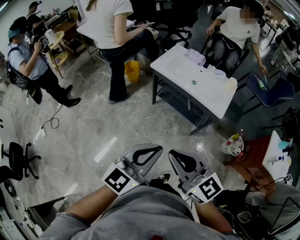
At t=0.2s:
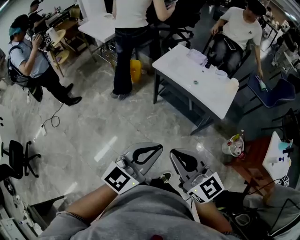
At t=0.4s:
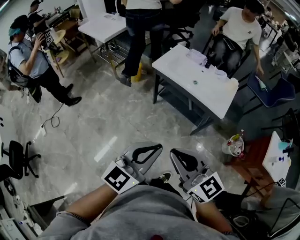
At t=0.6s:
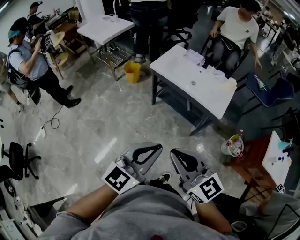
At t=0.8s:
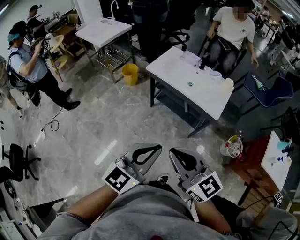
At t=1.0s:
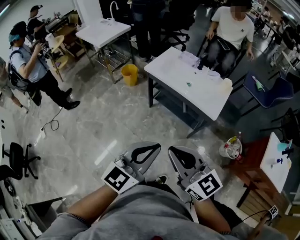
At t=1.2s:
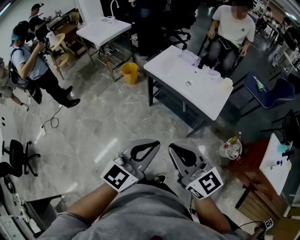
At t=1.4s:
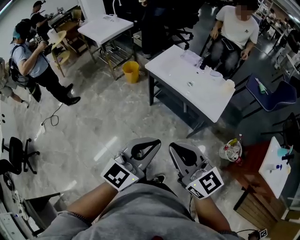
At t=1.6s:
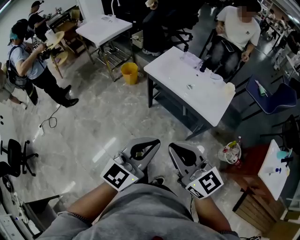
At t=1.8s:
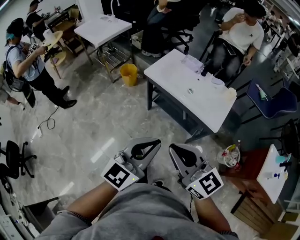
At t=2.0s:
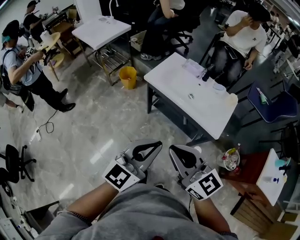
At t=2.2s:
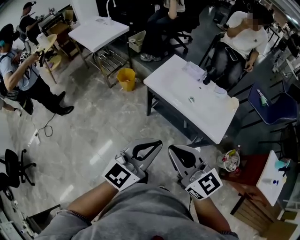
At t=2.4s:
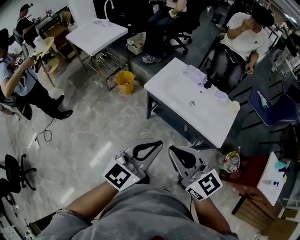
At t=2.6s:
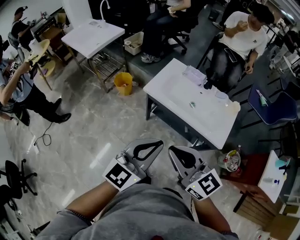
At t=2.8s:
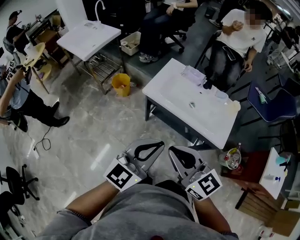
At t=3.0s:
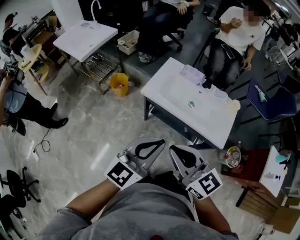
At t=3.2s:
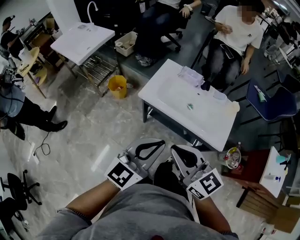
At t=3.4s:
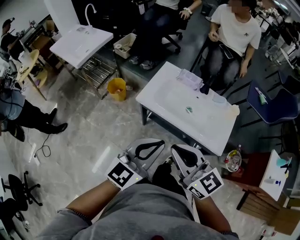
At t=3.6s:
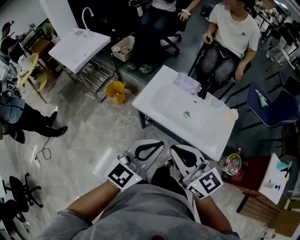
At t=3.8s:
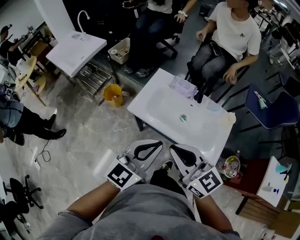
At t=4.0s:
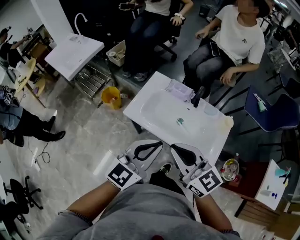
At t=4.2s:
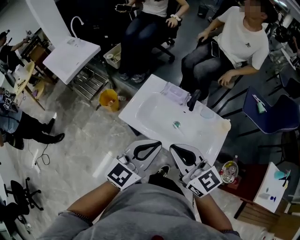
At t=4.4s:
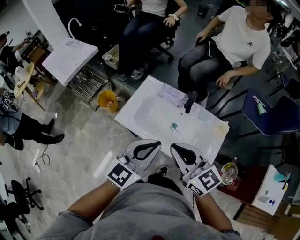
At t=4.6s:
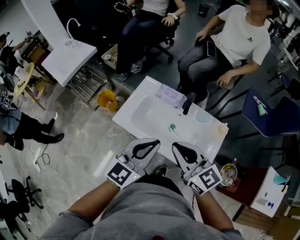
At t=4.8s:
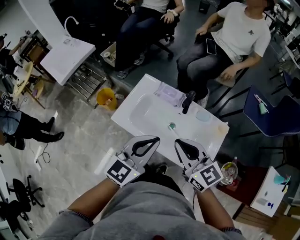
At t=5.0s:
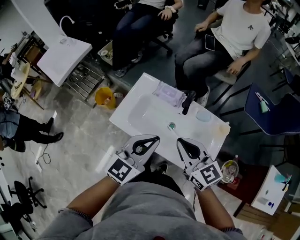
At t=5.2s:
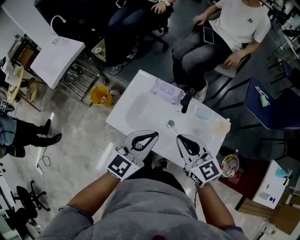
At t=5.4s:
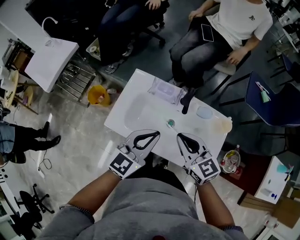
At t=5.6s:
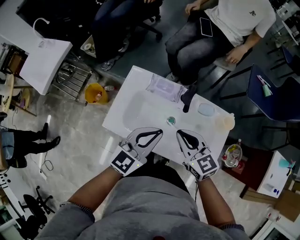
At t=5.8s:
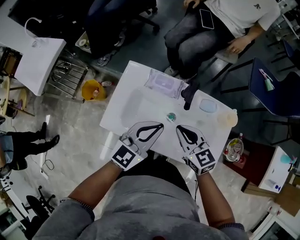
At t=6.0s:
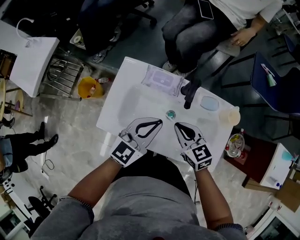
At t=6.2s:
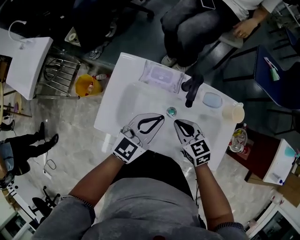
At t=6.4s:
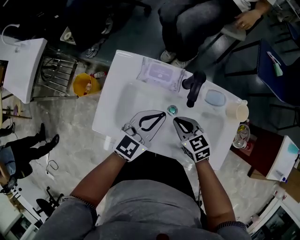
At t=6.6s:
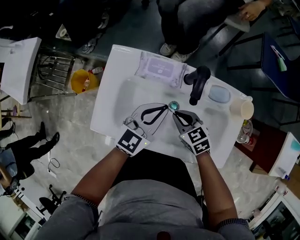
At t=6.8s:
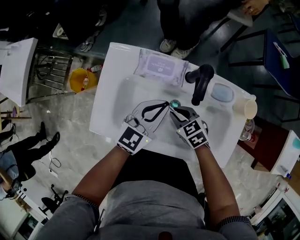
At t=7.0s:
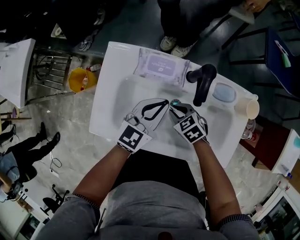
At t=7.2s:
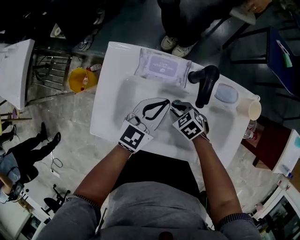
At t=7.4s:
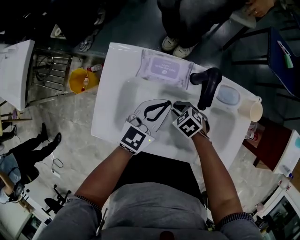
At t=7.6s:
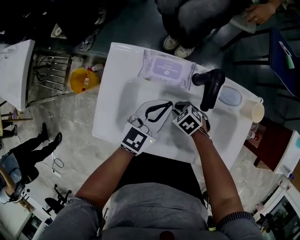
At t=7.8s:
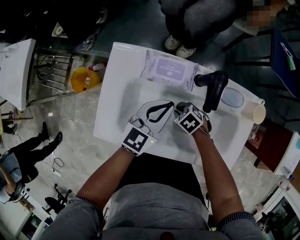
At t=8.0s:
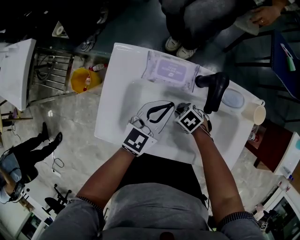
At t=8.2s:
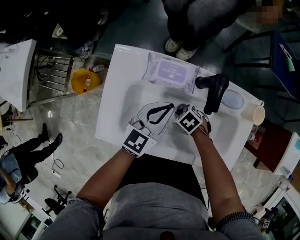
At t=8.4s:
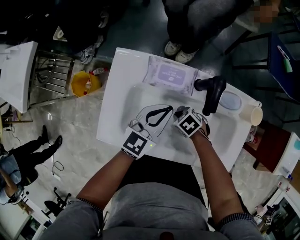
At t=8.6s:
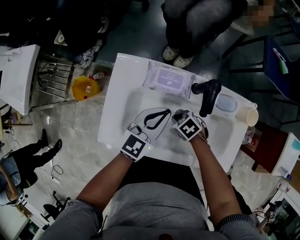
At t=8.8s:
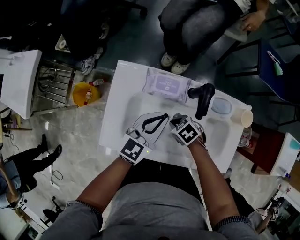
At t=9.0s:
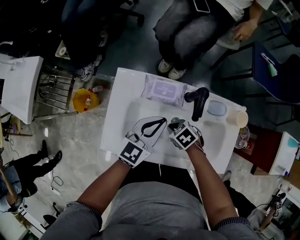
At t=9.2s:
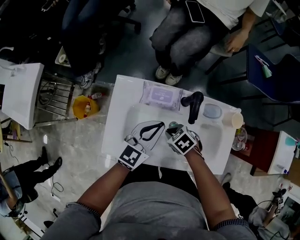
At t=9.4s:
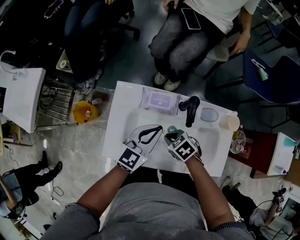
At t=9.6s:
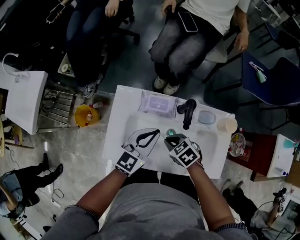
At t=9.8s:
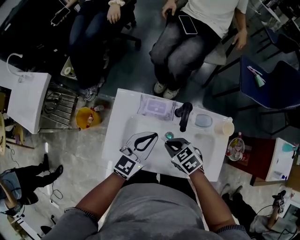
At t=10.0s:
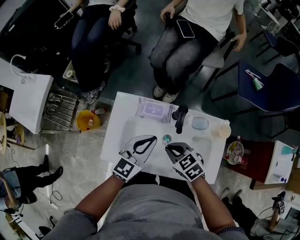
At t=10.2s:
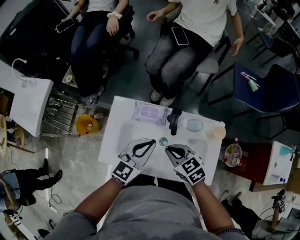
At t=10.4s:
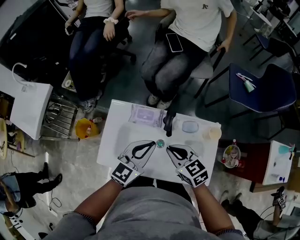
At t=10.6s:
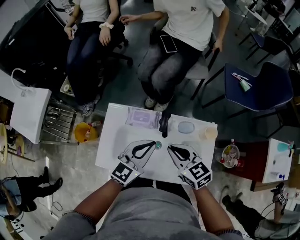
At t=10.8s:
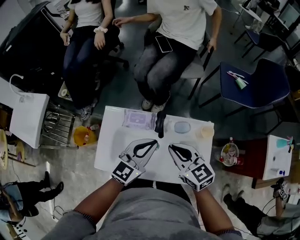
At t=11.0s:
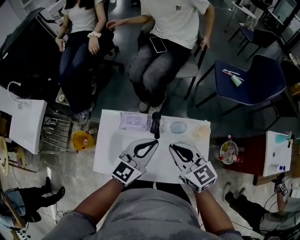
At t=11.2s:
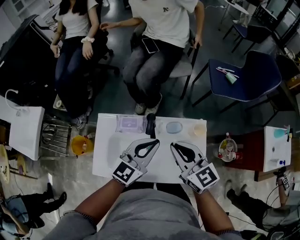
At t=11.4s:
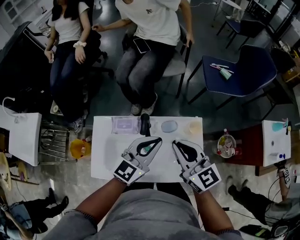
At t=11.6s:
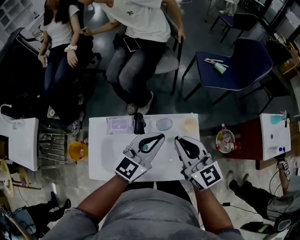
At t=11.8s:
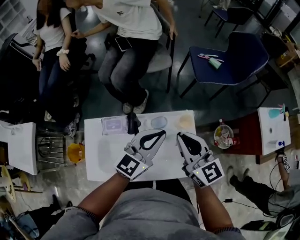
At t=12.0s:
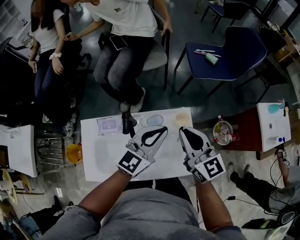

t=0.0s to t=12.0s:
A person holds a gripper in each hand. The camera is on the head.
t=0.0s to t=1.6s: The left gripper heads forward and to the right, covering about 10 cm, while the right gripper goes about 10 cm to the right and forward.
t=1.6s to t=3.0s: The grippers both shift forward by some 25 cm.
t=3.0s to t=4.4s: Both grippers travel together forward and to the right, roughly 25 cm.
t=4.4s to t=6.0s: The grippers both shift downward and forward by some 25 cm. The right gripper turns by approximately 30 degrees.
t=6.0s to t=7.6s: The left gripper moves downward, some 15 cm; the right gripper is displaced downward by about 25 cm, and angles its fingers downward, by approximately 40 degrees.
t=7.6s to t=9.0s: The two grippers go about 5 cm upward.
t=9.0s to t=10.4s: The right gripper goes approximately 25 cm upward, and swivels roughly 40 degrees. The left gripper heads upward, covering approximately 10 cm.
t=10.4s to t=12.0s: The right gripper shifts by some 25 cm, and angles its fingers upward, by approximately 30 degrees. Meanwhile the left gripper moves roughly 20 cm, and rotates roughly 20 degrees.

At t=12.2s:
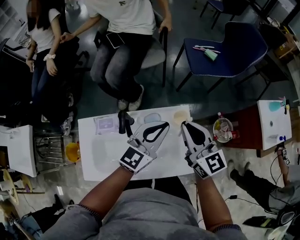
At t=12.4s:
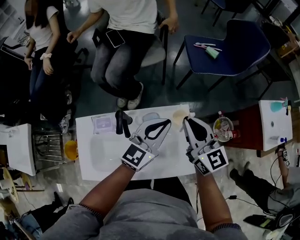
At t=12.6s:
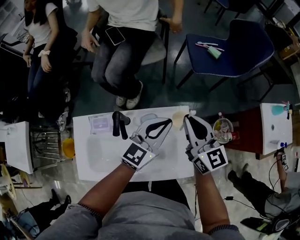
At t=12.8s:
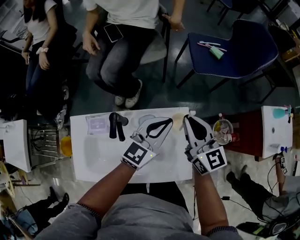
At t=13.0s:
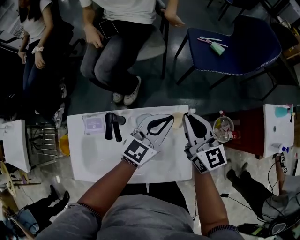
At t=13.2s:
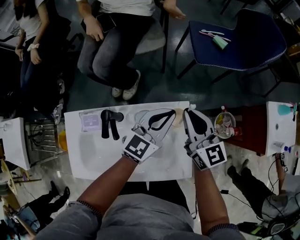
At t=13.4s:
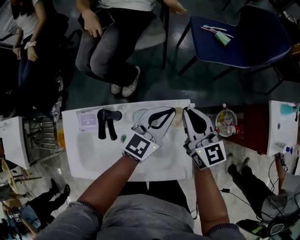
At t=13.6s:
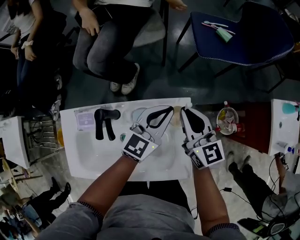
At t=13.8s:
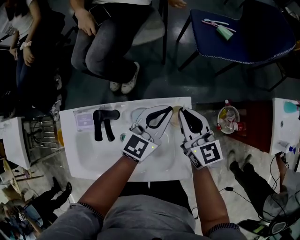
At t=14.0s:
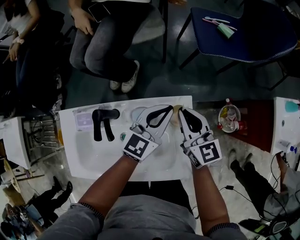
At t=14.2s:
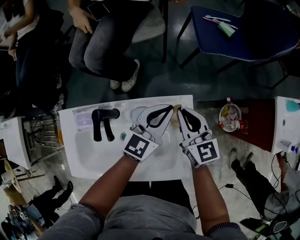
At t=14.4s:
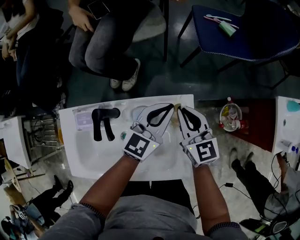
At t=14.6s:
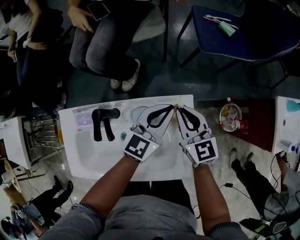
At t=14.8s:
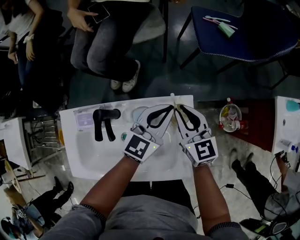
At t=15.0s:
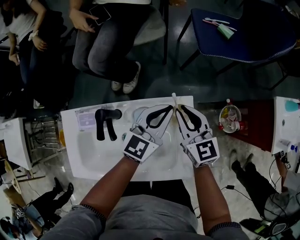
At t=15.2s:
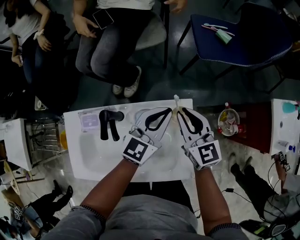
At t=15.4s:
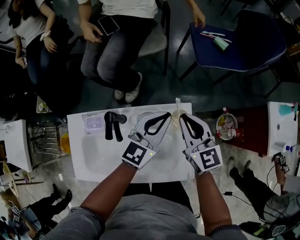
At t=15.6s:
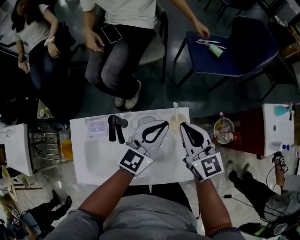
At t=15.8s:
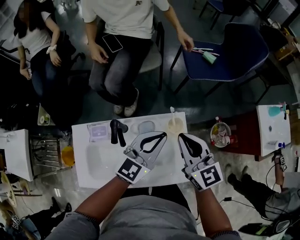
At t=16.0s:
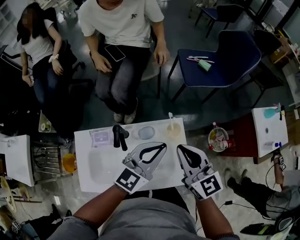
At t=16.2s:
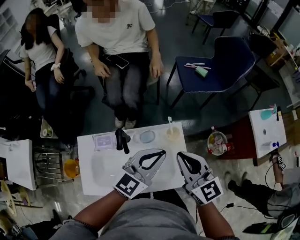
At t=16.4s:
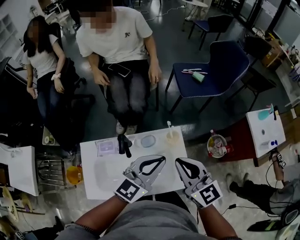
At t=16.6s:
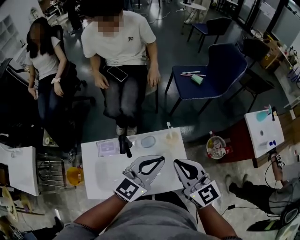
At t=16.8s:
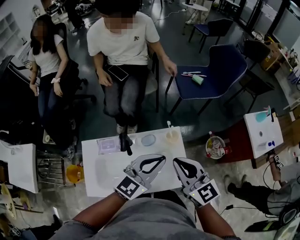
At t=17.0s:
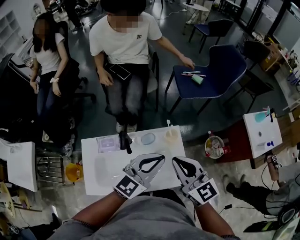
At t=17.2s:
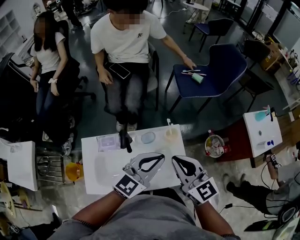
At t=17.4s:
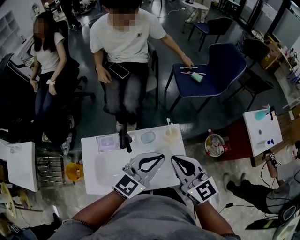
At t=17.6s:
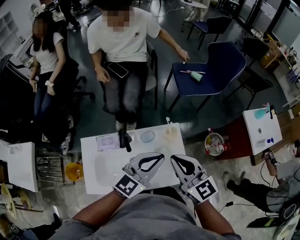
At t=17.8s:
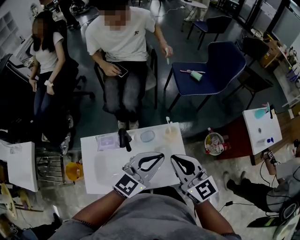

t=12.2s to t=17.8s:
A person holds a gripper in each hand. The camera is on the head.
t=12.2s to t=13.6s: The two grippers go roughly 15 cm downward and forward.
t=13.6s to t=15.0s: The grippers stay close to where they were, moving slightly.
t=15.0s to t=16.4s: Both grippers move upward and backward, some 25 cm.
t=16.4s to t=17.8s: The grippers move only a little.

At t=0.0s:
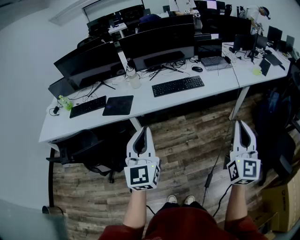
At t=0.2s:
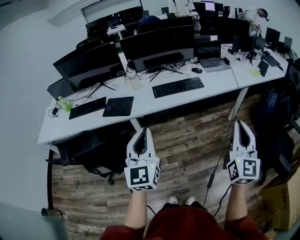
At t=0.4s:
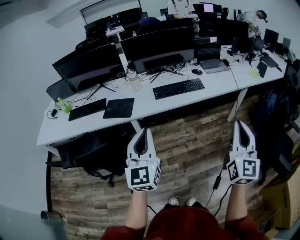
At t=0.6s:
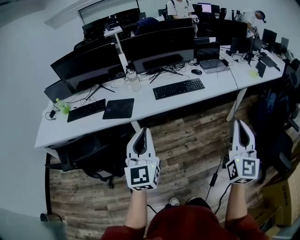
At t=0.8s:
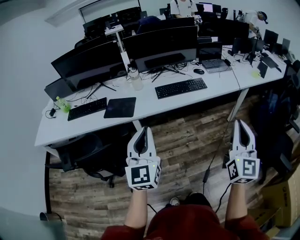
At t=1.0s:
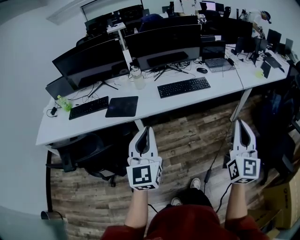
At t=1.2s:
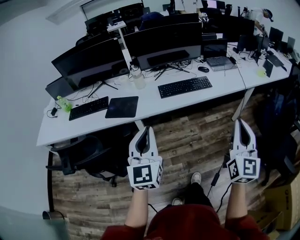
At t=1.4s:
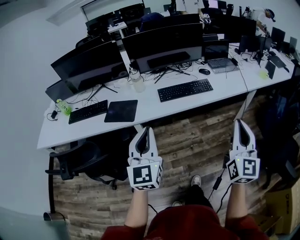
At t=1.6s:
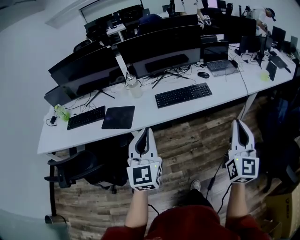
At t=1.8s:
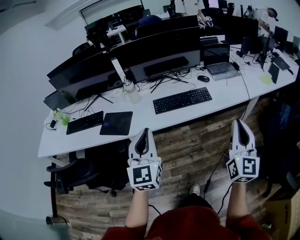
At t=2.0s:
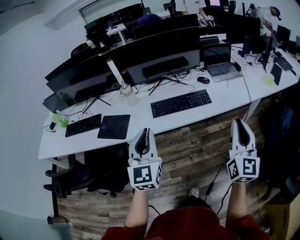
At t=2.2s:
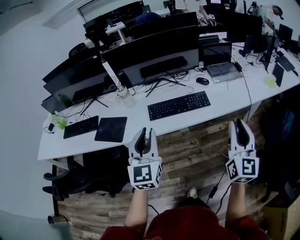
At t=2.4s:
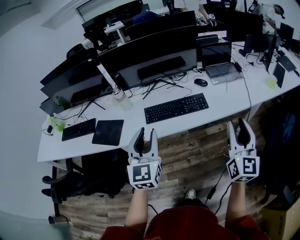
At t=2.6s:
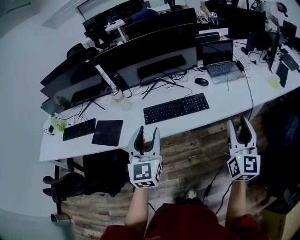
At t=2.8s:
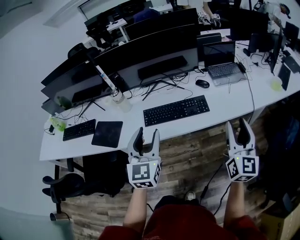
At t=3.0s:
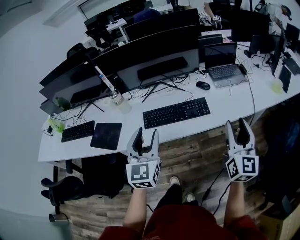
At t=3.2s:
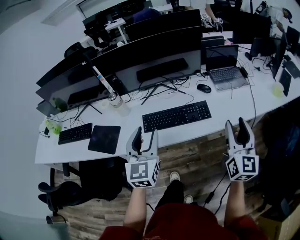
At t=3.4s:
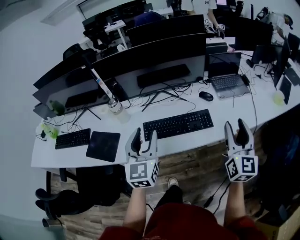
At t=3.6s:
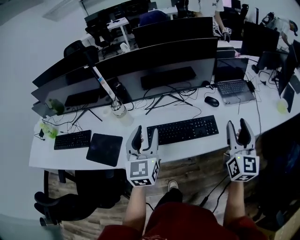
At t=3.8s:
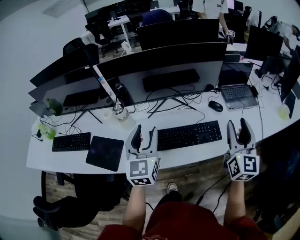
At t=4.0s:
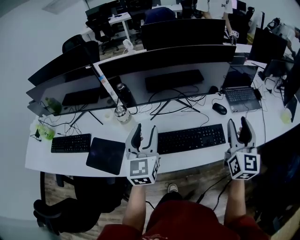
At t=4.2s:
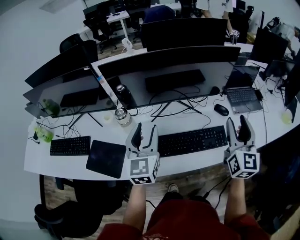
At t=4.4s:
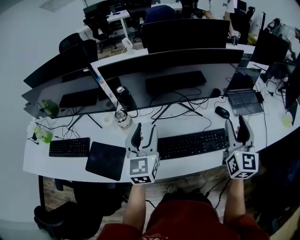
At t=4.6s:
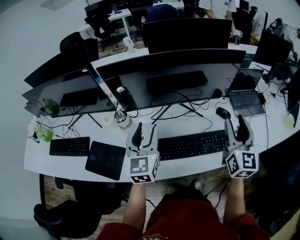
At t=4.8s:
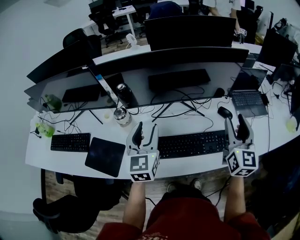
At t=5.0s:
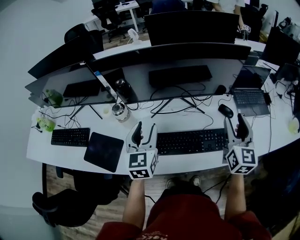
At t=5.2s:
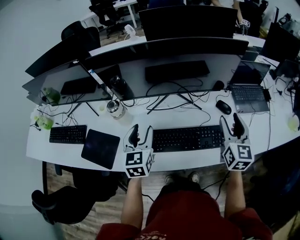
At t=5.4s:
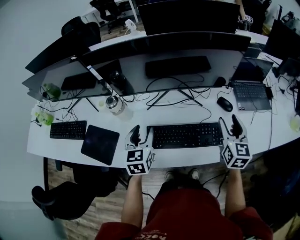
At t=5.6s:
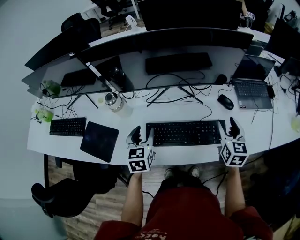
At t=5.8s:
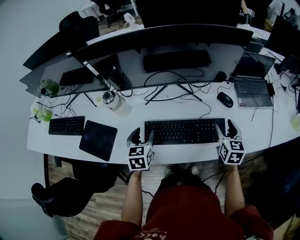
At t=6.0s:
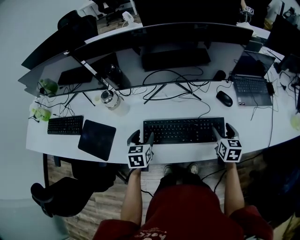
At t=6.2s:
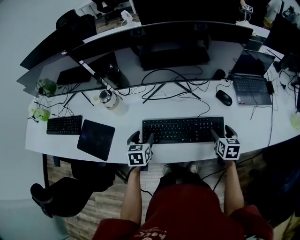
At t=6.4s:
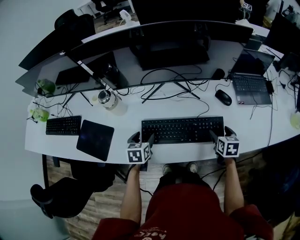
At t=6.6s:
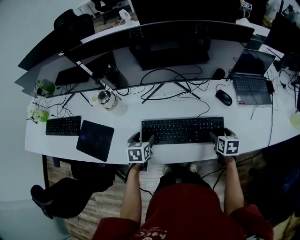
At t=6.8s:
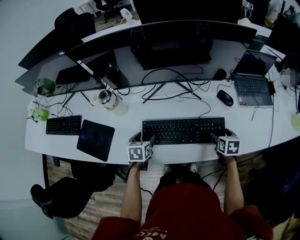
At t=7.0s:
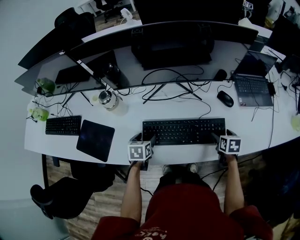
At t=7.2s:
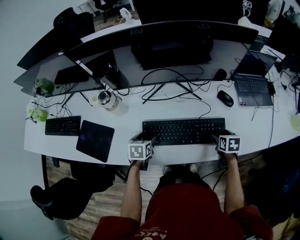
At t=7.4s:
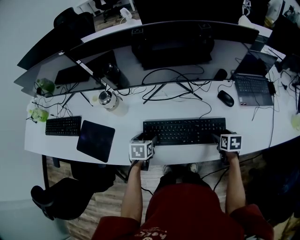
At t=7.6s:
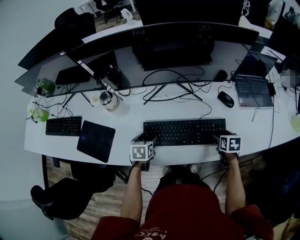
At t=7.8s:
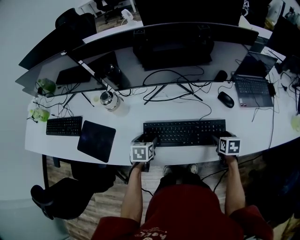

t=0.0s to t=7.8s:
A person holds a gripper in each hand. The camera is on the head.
t=0.0s to t=1.6s: The grippers both shift forward by approximately 15 cm.
t=1.6s to t=3.2s: Both grippers travel together forward, approximately 30 cm. The left gripper opens its fingers. Meanwhile the right gripper opens.
t=3.2s to t=4.6s: The grippers both shift forward and to the left by approximately 25 cm.
t=4.6s to t=6.2s: Both grippers move downward, about 30 cm. The right gripper tips its fingers downward by roughly 40 degrees. Meanwhile the left gripper tilts its fingers about 40 degrees downward.
t=6.2s to t=7.8s: The right gripper moves downward, about 5 cm.
